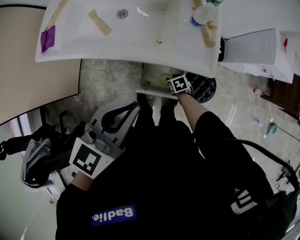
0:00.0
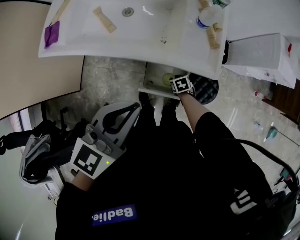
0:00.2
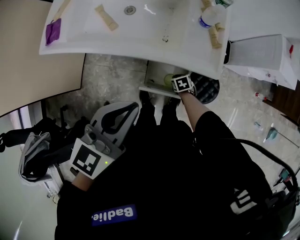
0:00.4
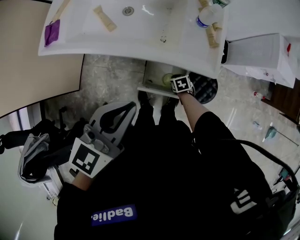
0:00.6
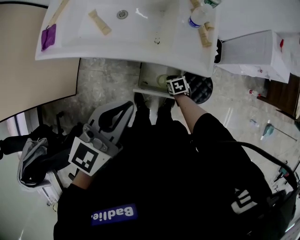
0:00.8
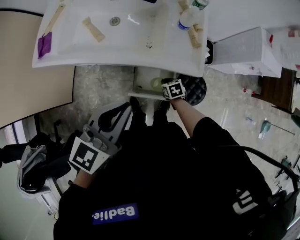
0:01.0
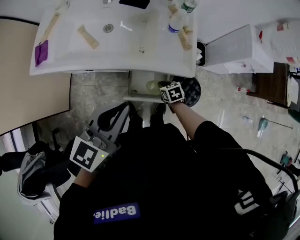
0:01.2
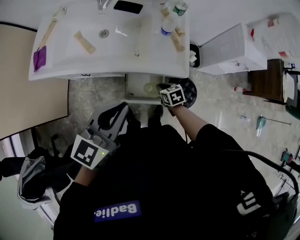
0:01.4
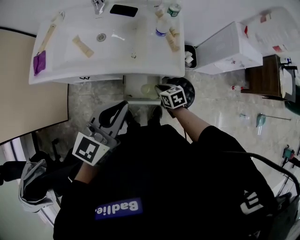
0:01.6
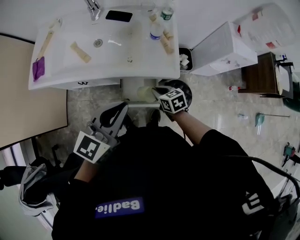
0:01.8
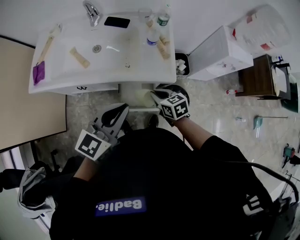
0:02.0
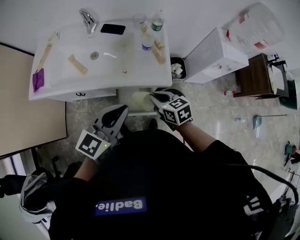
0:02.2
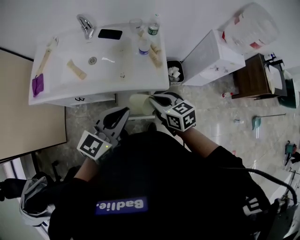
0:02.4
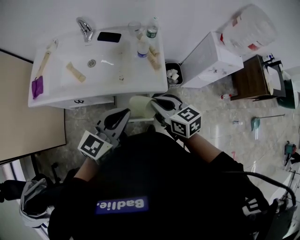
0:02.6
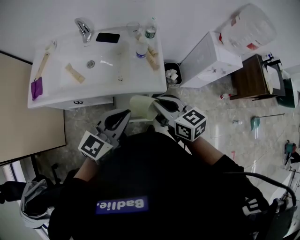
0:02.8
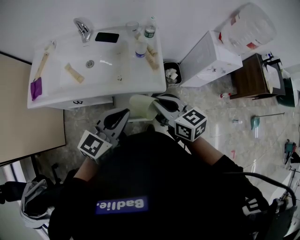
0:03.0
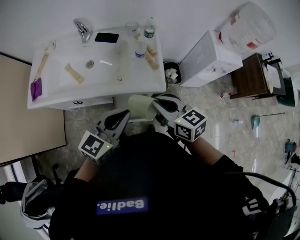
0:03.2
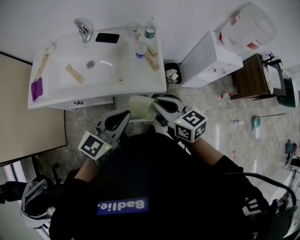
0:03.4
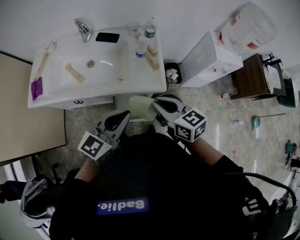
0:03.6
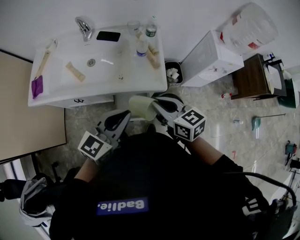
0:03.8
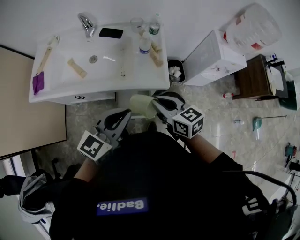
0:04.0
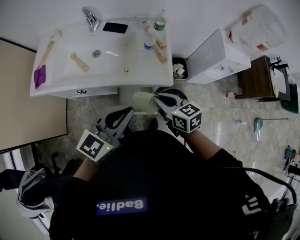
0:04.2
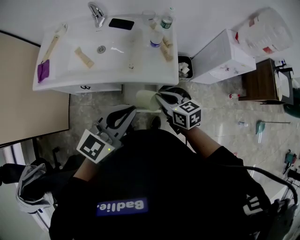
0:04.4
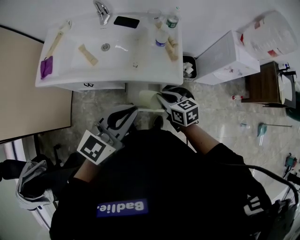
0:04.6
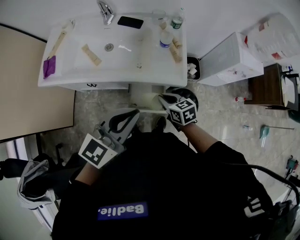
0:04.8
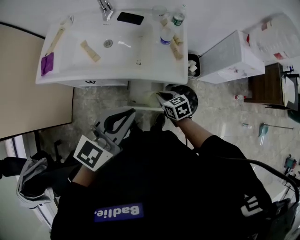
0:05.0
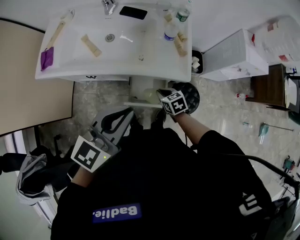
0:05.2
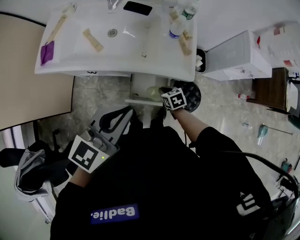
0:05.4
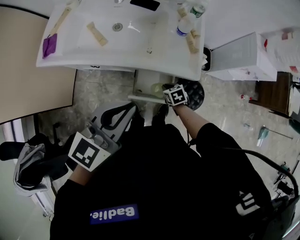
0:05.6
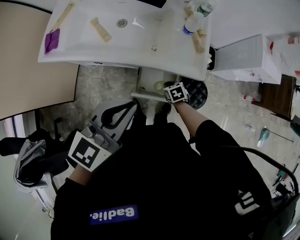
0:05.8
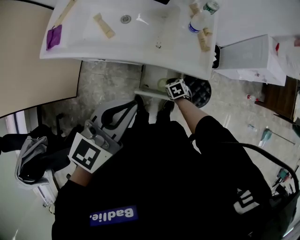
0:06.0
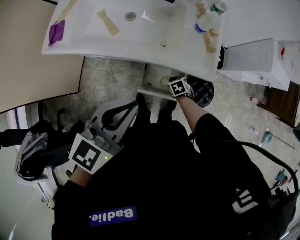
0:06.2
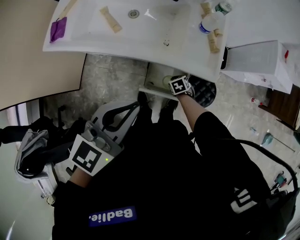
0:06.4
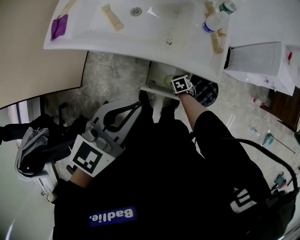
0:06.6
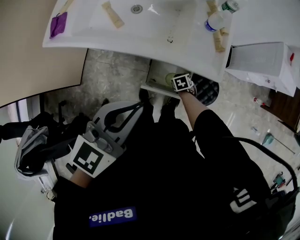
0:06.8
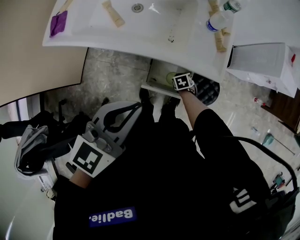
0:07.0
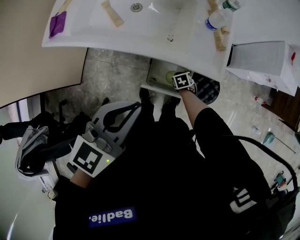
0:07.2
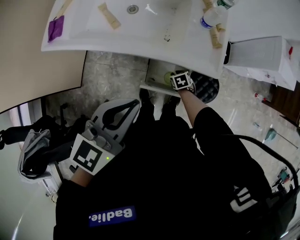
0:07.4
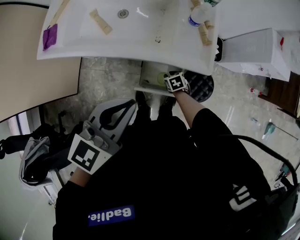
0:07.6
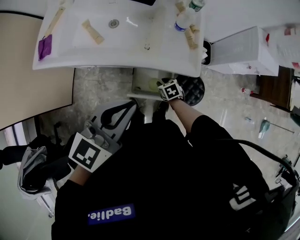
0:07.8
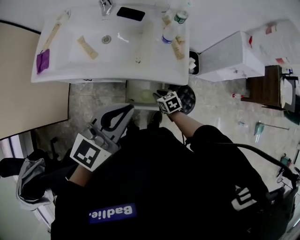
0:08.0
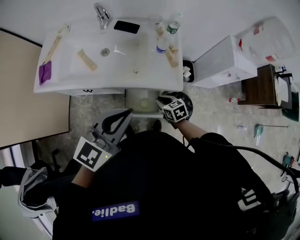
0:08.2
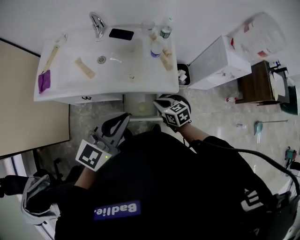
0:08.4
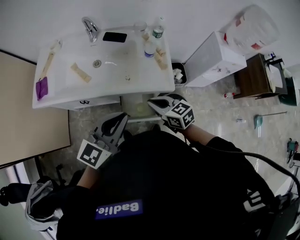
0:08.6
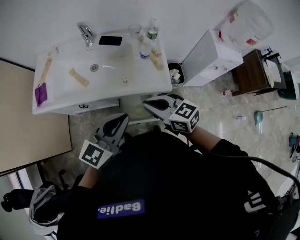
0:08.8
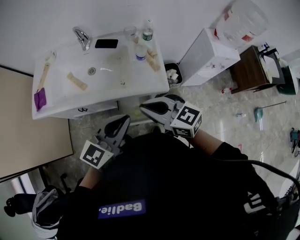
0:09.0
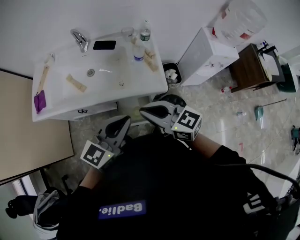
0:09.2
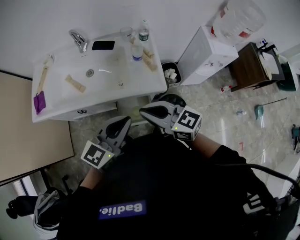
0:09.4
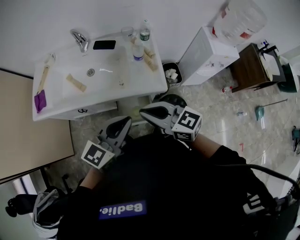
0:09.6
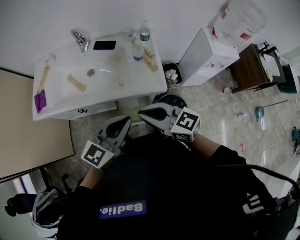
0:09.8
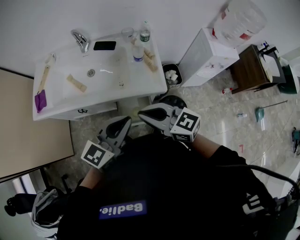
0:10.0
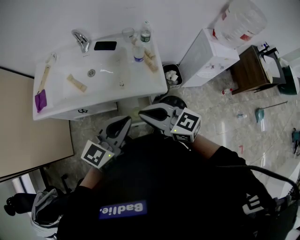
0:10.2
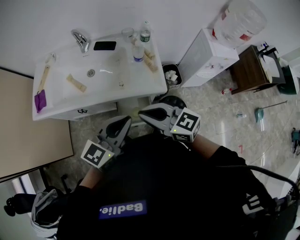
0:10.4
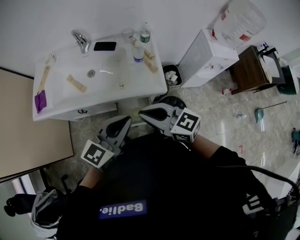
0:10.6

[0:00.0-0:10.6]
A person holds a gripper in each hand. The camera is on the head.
0:00.0 to 0:01.6: The right gripper is displaced upward by approximately 20 cm, and closes its fingers.
0:01.6 to 0:03.0: The right gripper travels upward by about 30 cm, and turns by approximately 30 degrees; the left gripper is displaced to the right by roughly 5 cm.
0:03.0 to 0:04.6: The right gripper travels downward by some 15 cm.
0:04.6 to 0:06.0: The left gripper travels to the left by some 5 cm; the right gripper moves downward, roughly 30 cm, and points its fingers about 30 degrees further downward.
0:07.6 to 0:09.0: The right gripper travels upward by about 50 cm, angles its fingers upward, by approximately 50 degrees, and closes. The left gripper goes approximately 5 cm to the right.
0:09.0 to 0:10.6: There are only small adjustments of the grippers.

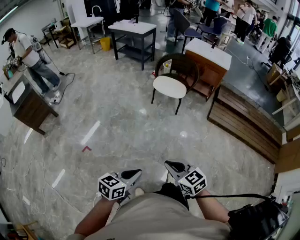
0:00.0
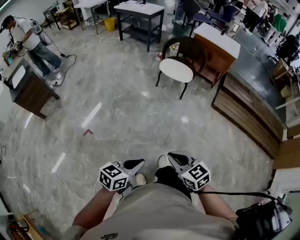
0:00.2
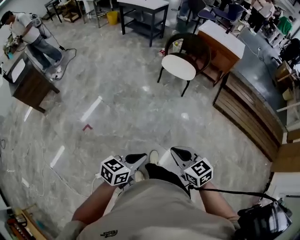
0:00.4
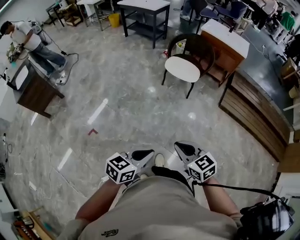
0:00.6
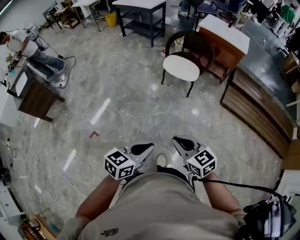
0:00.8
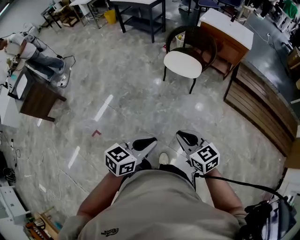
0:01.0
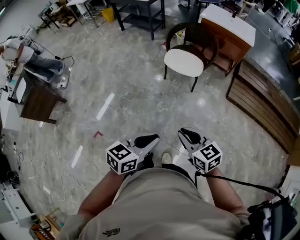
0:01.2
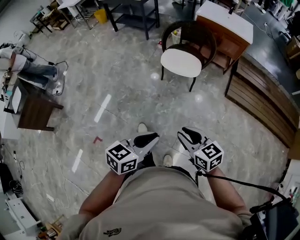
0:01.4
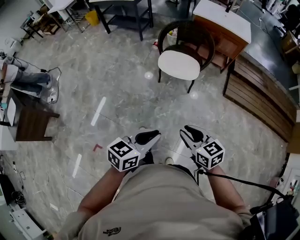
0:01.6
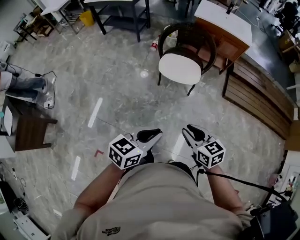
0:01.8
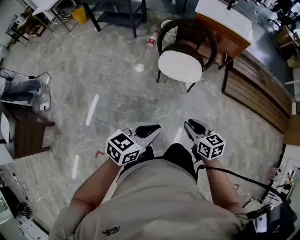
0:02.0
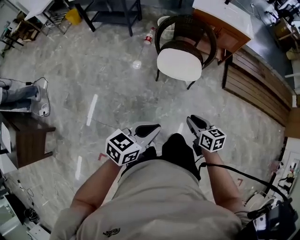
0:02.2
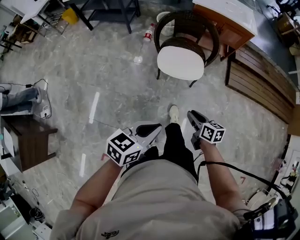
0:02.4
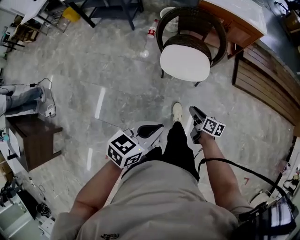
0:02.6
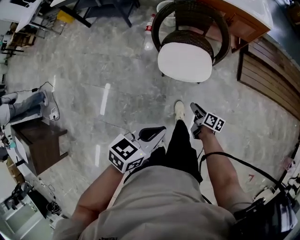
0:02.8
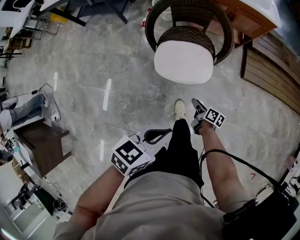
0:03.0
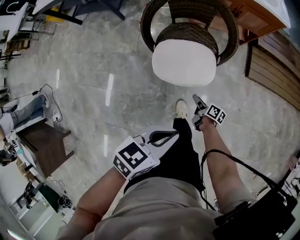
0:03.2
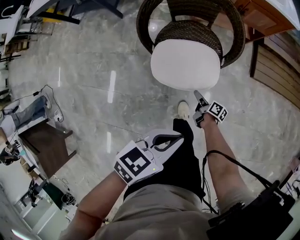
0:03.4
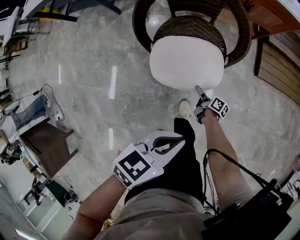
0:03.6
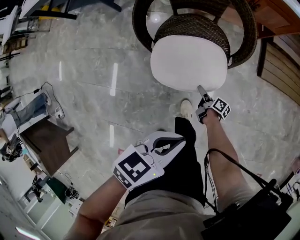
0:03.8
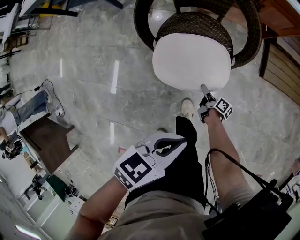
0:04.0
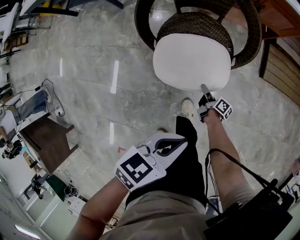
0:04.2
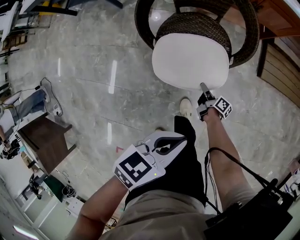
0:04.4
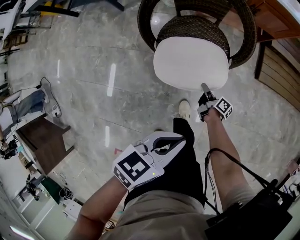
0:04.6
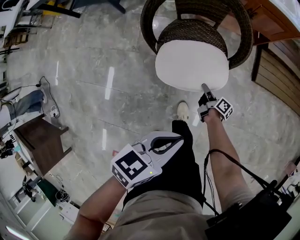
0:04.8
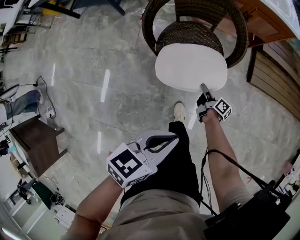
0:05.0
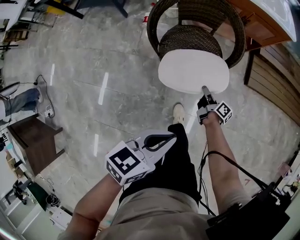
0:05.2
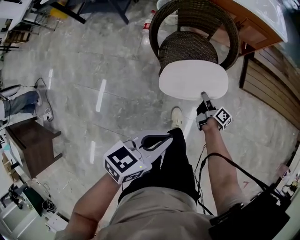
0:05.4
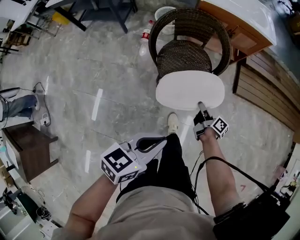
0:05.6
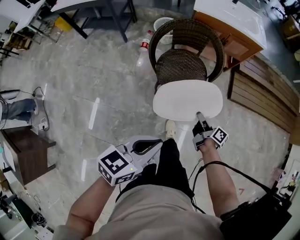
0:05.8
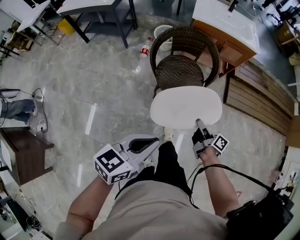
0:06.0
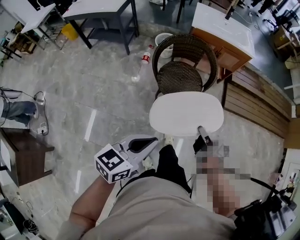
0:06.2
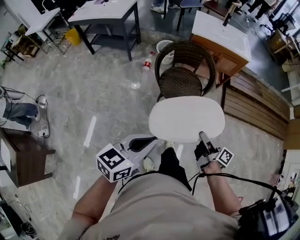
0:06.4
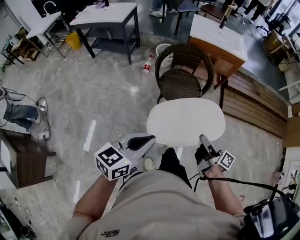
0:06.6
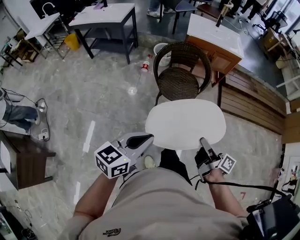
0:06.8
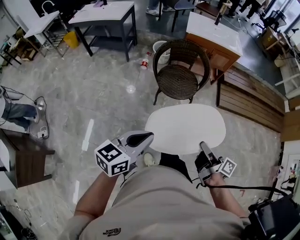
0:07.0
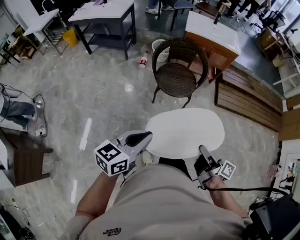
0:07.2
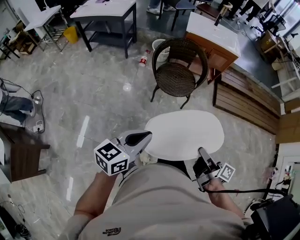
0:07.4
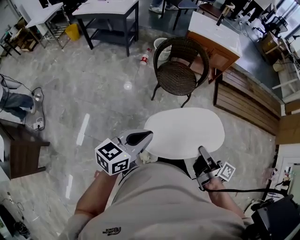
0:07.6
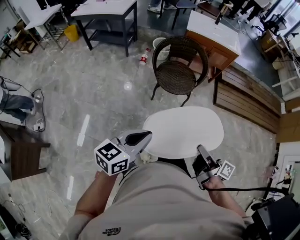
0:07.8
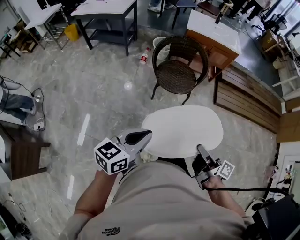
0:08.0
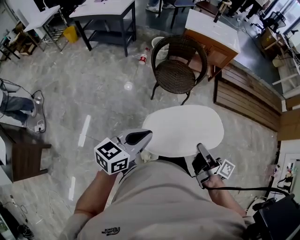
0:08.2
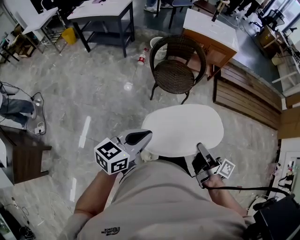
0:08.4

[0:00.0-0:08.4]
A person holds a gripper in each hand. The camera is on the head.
0:00.0 to 0:01.4: The grippers both shift forward by approximately 35 cm.
0:01.4 to 0:02.8: The left gripper travels forward by roughly 35 cm, and changes its angle by roughly 20 degrees. Meanwhile the right gripper heads forward and downward, covering about 50 cm, and rolls clockwise, seen from behind, by about 60 degrees.
0:02.8 to 0:04.2: The right gripper is displaced downward and forward by about 30 cm, turns by roughly 30 degrees, and opens, then closes once more. The left gripper moves forward and downward, some 25 cm.
0:04.2 to 0:05.6: The left gripper is displaced backward and upward by about 20 cm. The right gripper heads upward, covering roughly 25 cm.
0:05.6 to 0:07.0: The left gripper heads backward and upward, covering roughly 25 cm, while the right gripper goes roughly 50 cm backward and upward.
0:07.0 to 0:08.4: The right gripper moves about 5 cm.

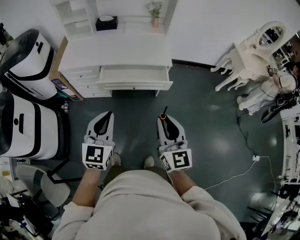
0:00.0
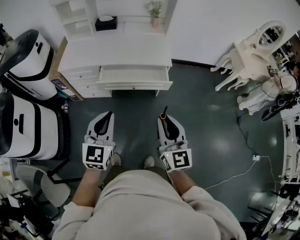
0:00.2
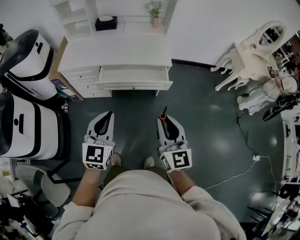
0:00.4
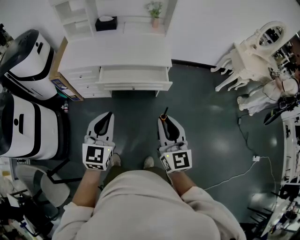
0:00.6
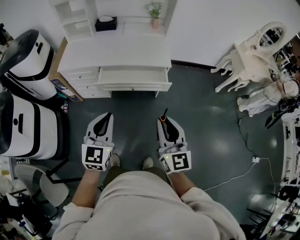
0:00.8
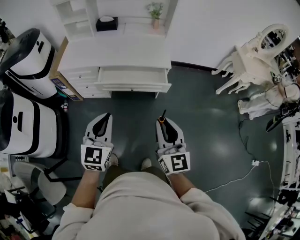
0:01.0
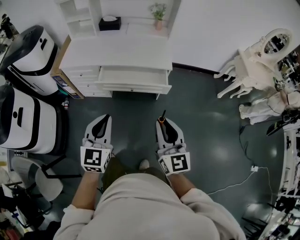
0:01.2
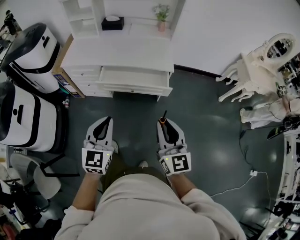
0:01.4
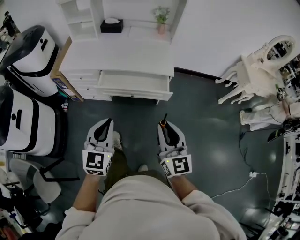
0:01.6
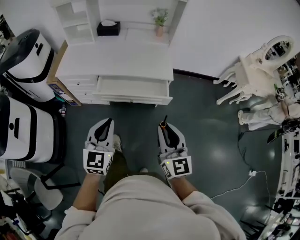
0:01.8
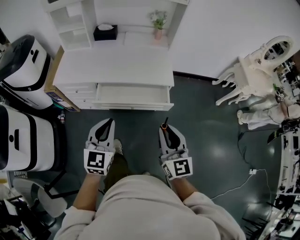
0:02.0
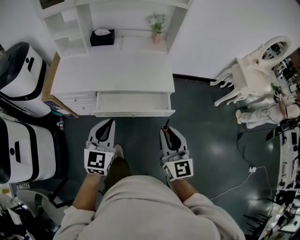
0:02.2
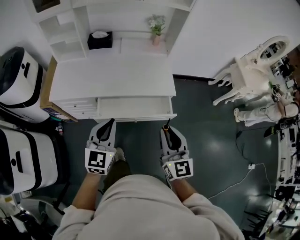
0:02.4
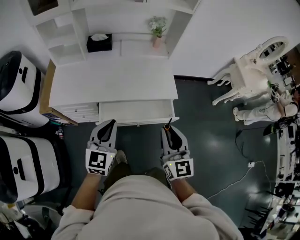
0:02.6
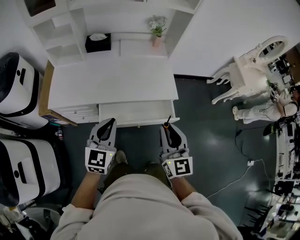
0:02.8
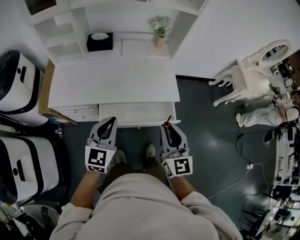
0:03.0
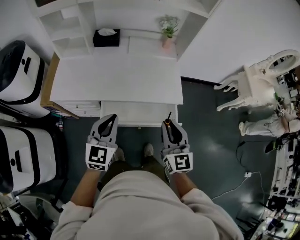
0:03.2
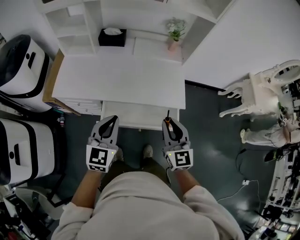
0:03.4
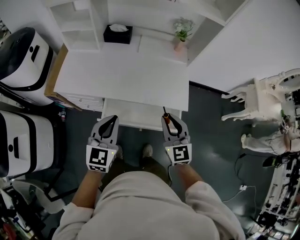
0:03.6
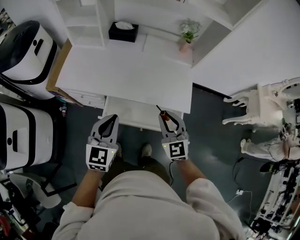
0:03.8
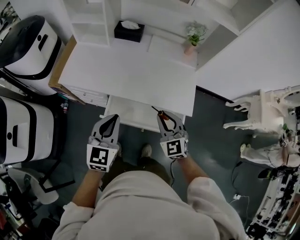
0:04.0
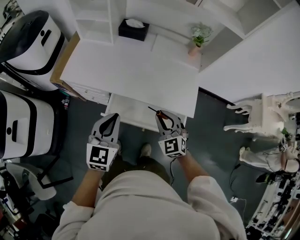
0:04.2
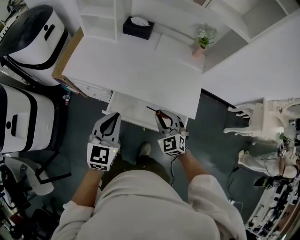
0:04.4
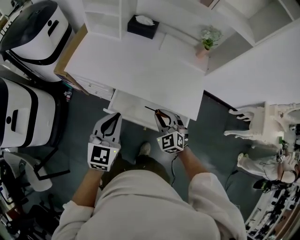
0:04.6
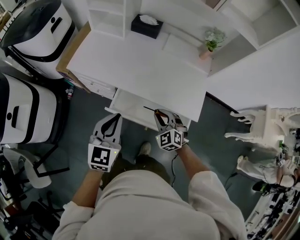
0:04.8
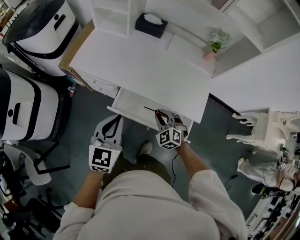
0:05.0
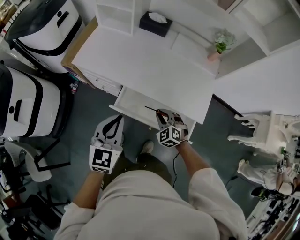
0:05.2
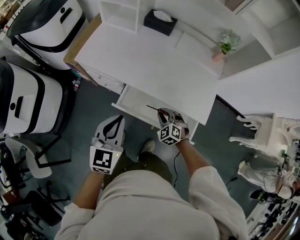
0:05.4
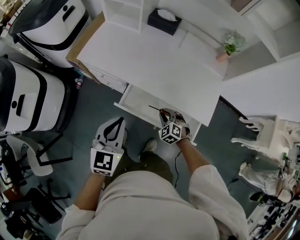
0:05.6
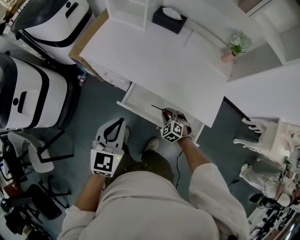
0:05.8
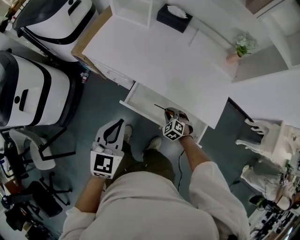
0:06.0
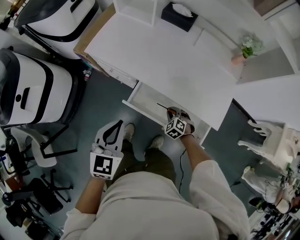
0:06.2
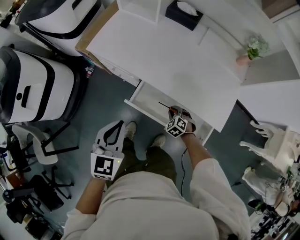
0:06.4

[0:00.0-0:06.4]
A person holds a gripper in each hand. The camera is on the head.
0:00.0 to 0:01.6: The left gripper changes place by approximately 5 cm. Meanwhile the right gripper shifts by approximately 5 cm.
0:01.6 to 0:03.2: The two grippers go approximately 30 cm forward.
0:03.2 to 0:04.8: The right gripper shifts some 20 cm downward and forward, and angles its fingers downward, by some 30 degrees. The left gripper swivels about 20 degrees.
0:04.8 to 0:06.4: The left gripper shifts some 10 cm to the left and downward, while the right gripper moves downward, about 25 cm, and turns by some 30 degrees.
